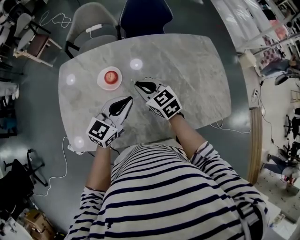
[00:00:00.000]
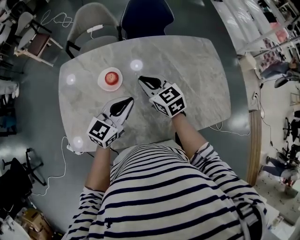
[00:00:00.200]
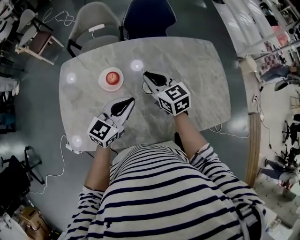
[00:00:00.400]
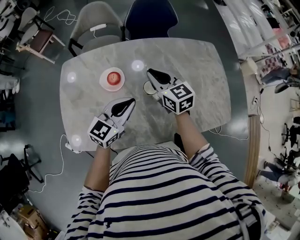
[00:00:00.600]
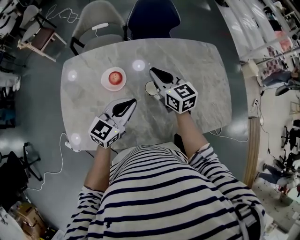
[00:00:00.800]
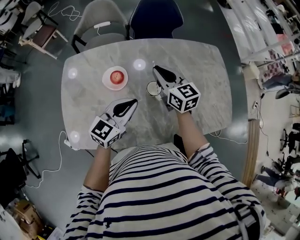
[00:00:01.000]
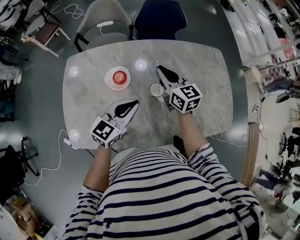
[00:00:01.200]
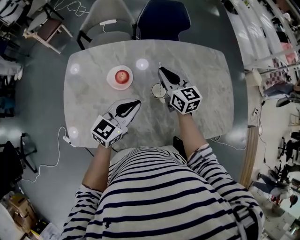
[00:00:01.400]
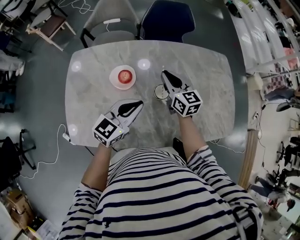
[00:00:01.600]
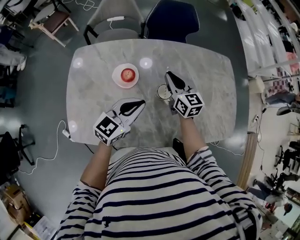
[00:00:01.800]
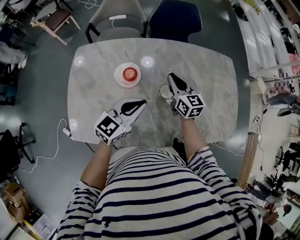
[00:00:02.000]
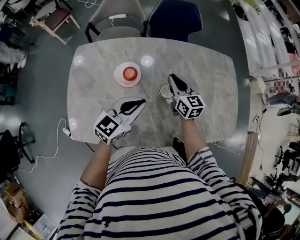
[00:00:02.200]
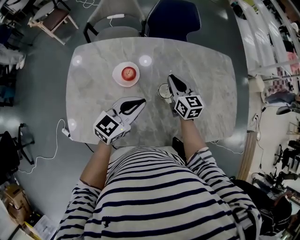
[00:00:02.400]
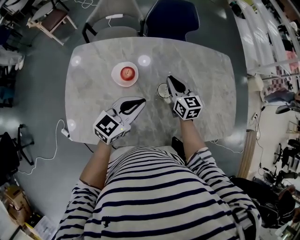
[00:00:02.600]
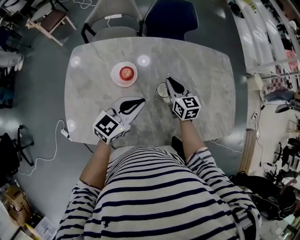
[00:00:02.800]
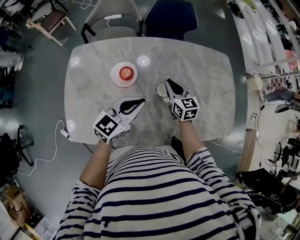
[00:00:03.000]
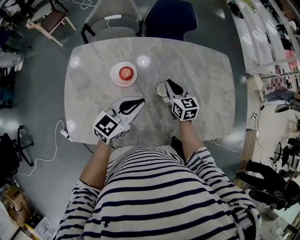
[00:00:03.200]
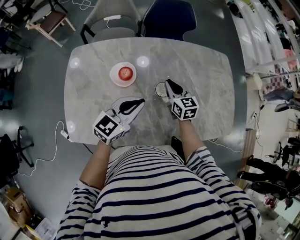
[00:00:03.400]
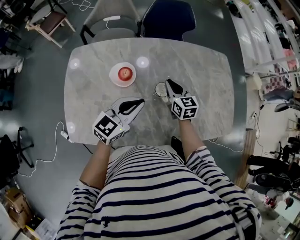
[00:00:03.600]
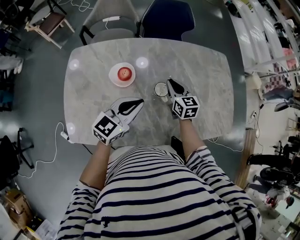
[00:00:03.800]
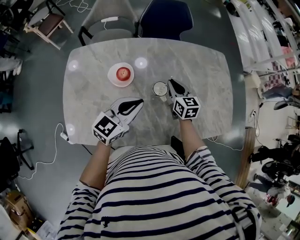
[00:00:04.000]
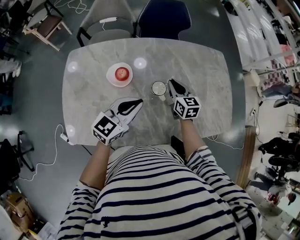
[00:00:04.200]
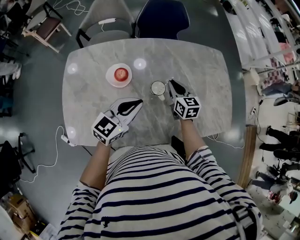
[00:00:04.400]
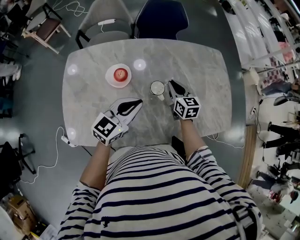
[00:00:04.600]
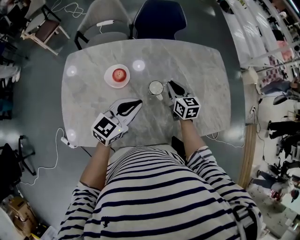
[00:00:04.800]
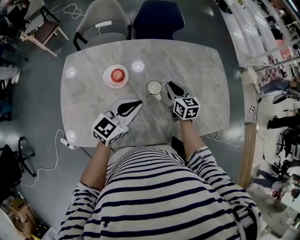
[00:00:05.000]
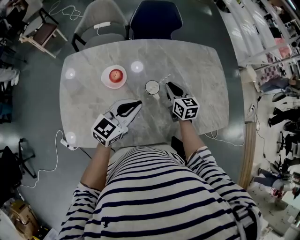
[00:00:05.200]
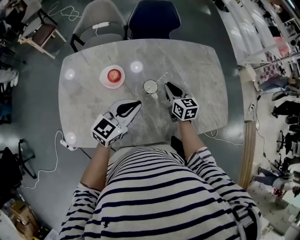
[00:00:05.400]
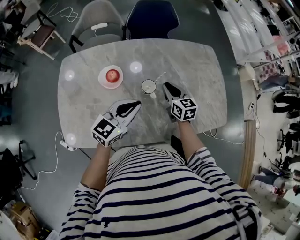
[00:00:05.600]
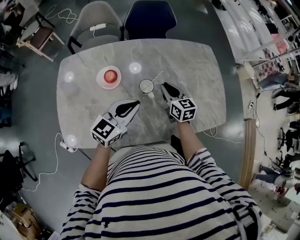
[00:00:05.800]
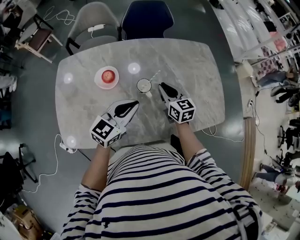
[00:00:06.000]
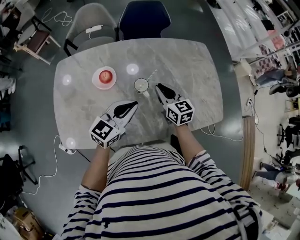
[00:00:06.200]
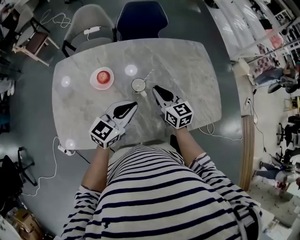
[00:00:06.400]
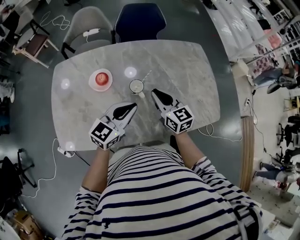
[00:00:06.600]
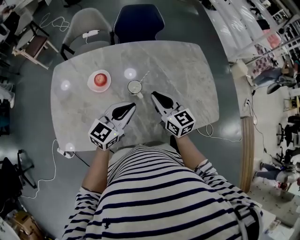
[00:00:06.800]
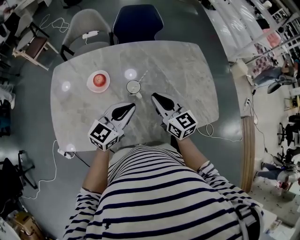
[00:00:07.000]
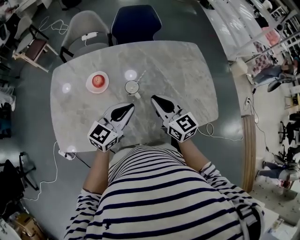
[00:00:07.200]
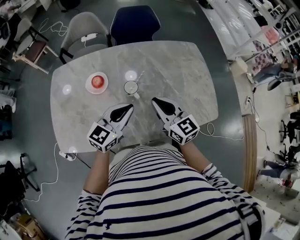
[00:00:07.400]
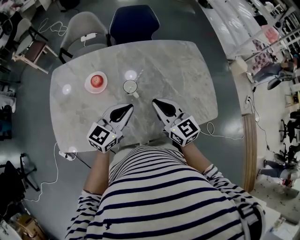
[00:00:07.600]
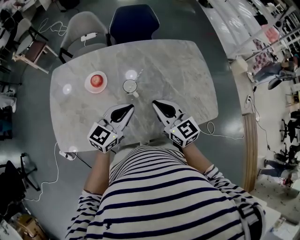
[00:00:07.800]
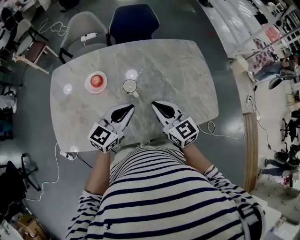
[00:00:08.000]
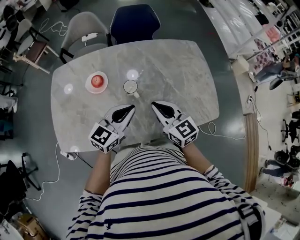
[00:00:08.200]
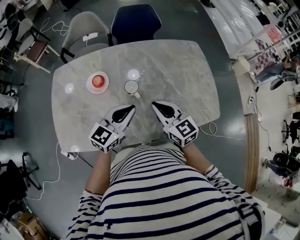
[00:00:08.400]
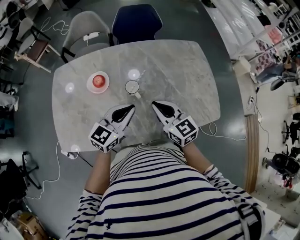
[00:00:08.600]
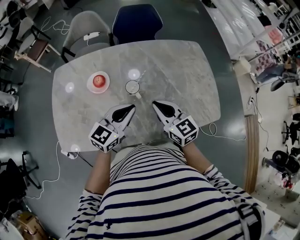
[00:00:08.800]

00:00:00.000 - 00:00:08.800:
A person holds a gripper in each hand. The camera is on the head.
00:00:00.000 - 00:00:01.400: The right gripper travels forward by some 10 cm, and turns by some 20 degrees.
00:00:01.400 - 00:00:03.000: The right gripper goes roughly 10 cm downward.
00:00:03.000 - 00:00:04.400: The grippers make only small movements.
00:00:04.400 - 00:00:05.800: The grippers stay close to where they were, moving slightly.
00:00:05.800 - 00:00:07.400: The left gripper is displaced to the right by approximately 5 cm. Meanwhile the right gripper heads upward and backward, covering approximately 15 cm.
00:00:07.400 - 00:00:08.800: There are only small adjustments of the grippers.

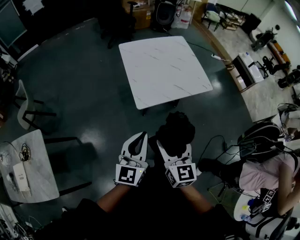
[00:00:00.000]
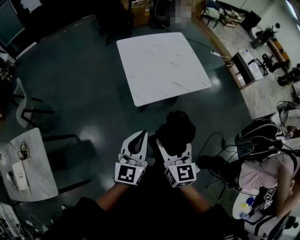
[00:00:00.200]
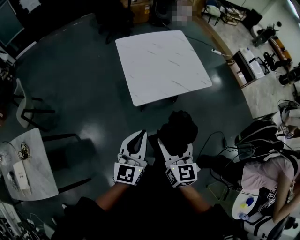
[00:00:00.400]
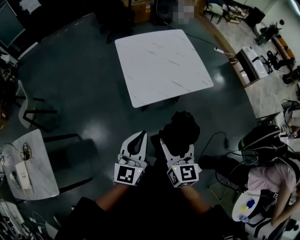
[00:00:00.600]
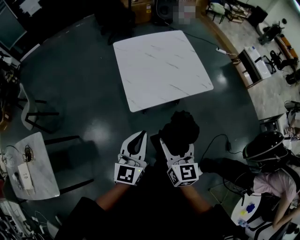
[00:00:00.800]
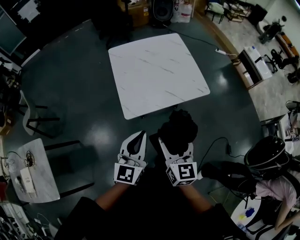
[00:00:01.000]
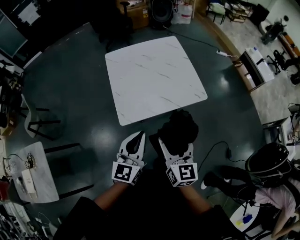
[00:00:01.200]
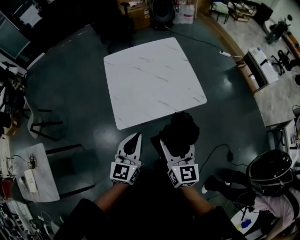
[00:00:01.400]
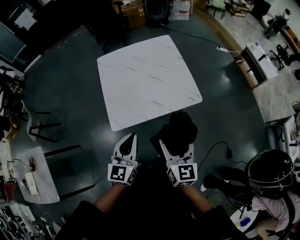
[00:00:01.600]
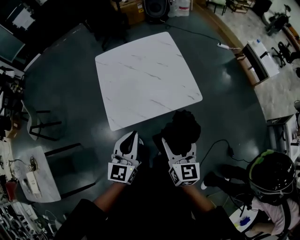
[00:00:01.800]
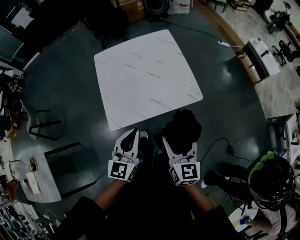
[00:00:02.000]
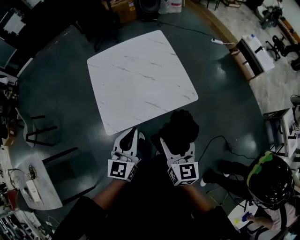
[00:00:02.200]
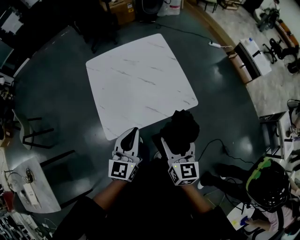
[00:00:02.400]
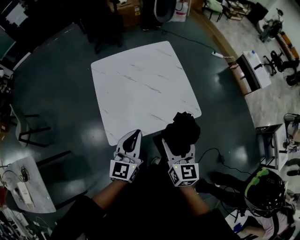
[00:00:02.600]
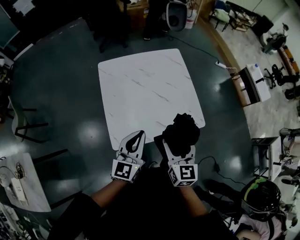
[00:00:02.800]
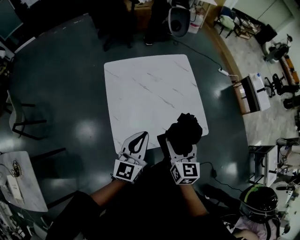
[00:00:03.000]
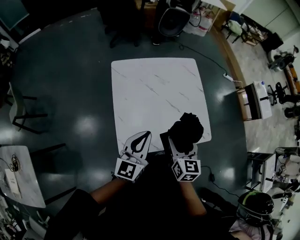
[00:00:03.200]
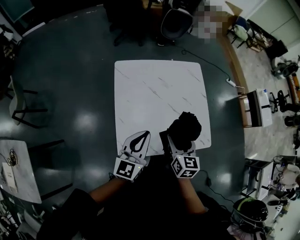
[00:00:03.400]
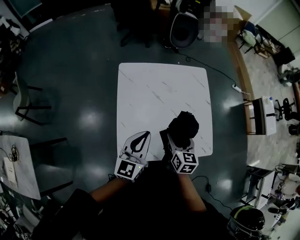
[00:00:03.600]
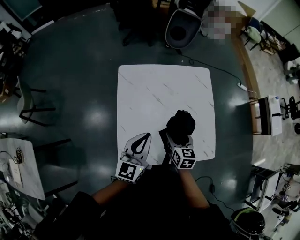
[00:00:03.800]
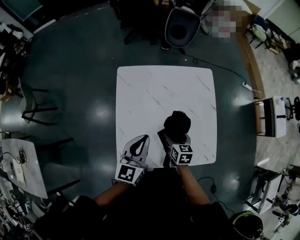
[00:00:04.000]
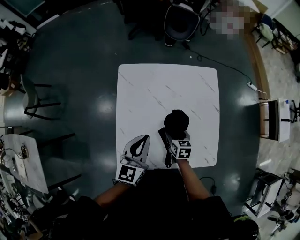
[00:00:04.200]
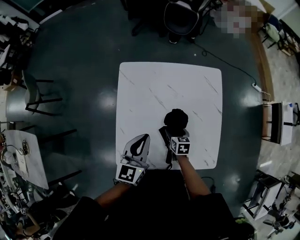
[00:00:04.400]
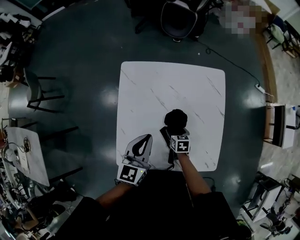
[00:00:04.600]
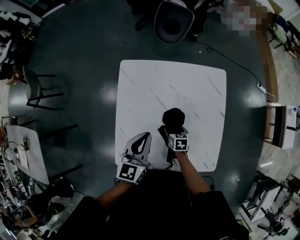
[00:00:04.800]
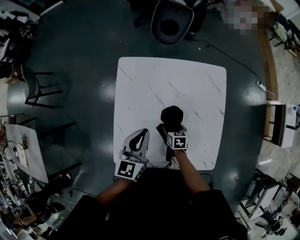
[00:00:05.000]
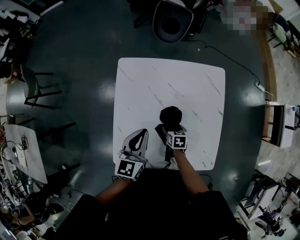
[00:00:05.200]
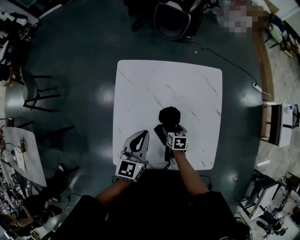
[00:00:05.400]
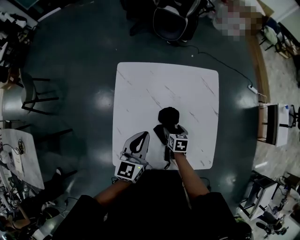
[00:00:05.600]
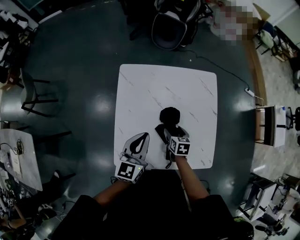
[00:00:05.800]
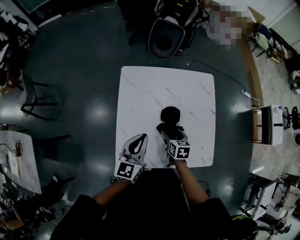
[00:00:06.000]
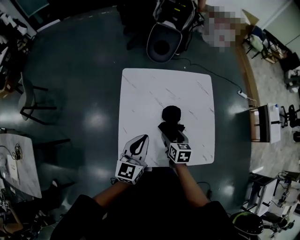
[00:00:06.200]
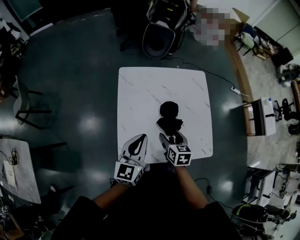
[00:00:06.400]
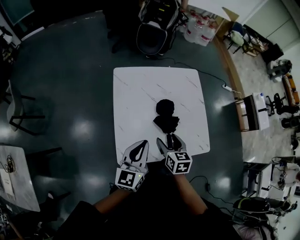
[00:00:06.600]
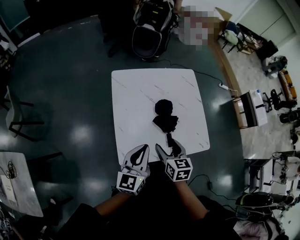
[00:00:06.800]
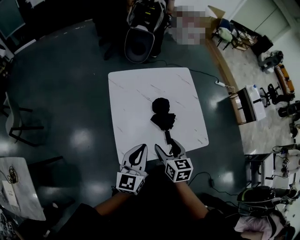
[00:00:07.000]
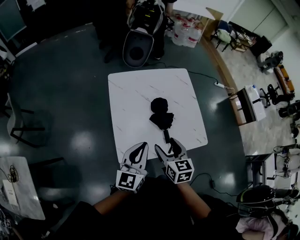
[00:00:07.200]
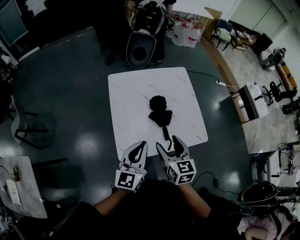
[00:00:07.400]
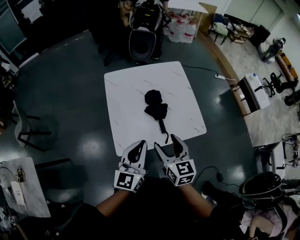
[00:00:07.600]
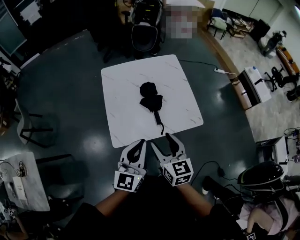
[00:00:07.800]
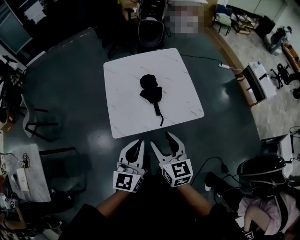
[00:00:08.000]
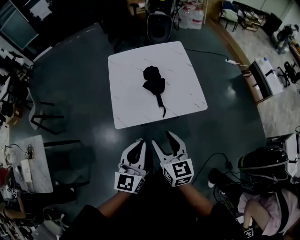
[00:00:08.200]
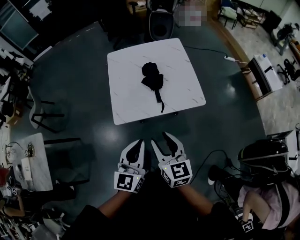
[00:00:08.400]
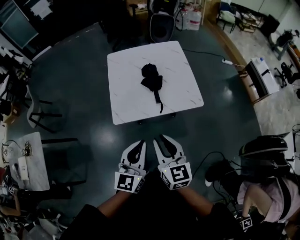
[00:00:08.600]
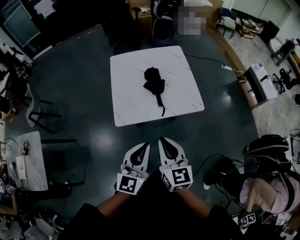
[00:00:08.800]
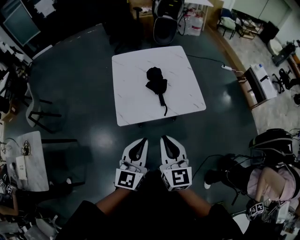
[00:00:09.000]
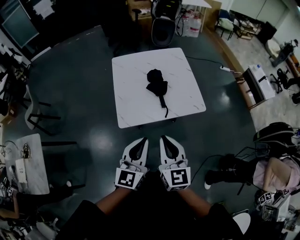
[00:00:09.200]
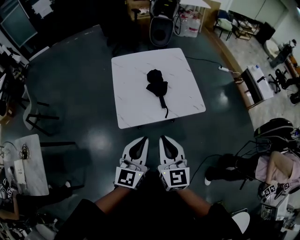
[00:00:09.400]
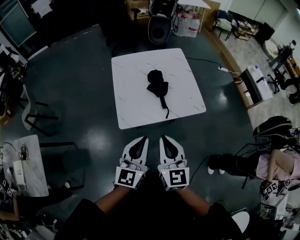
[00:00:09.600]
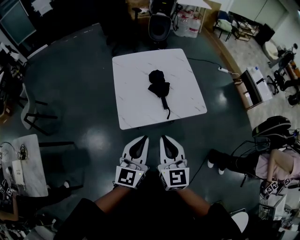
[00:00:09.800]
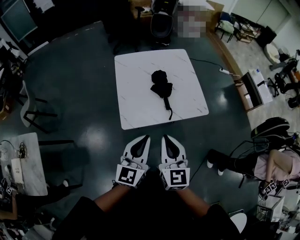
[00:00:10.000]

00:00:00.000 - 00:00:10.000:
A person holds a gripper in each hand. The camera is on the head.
00:00:00.000 - 00:00:01.400: The left gripper moves forward and to the right, some 25 cm; the right gripper shifts some 30 cm to the right and forward.
00:00:01.400 - 00:00:02.800: The grippers both shift forward by some 15 cm.
00:00:02.800 - 00:00:04.200: The right gripper is displaced forward and downward by some 35 cm, and turns by some 40 degrees, while the left gripper goes about 20 cm forward.
00:00:04.200 - 00:00:05.800: The right gripper moves roughly 10 cm downward and comes back.
00:00:05.800 - 00:00:07.200: The left gripper is displaced backward by some 20 cm, while the right gripper heads backward and upward, covering roughly 30 cm, and changes its angle by about 20 degrees.
00:00:07.200 - 00:00:08.600: The left gripper is displaced backward and to the right by roughly 30 cm; the right gripper heads backward, covering roughly 25 cm, and closes its fingers.
00:00:08.600 - 00:00:10.000: The grippers both shift to the left by roughly 10 cm.

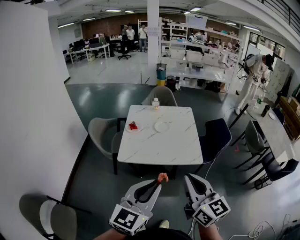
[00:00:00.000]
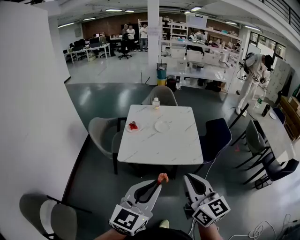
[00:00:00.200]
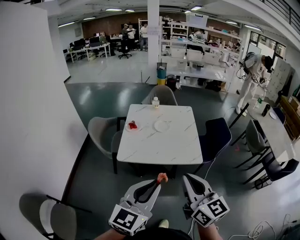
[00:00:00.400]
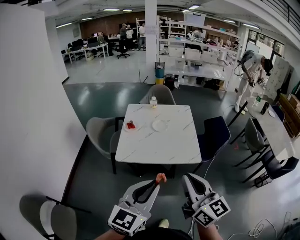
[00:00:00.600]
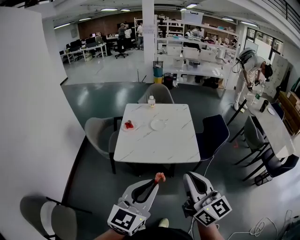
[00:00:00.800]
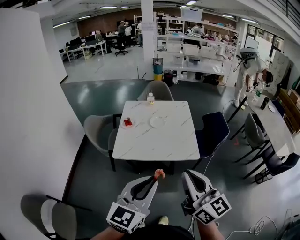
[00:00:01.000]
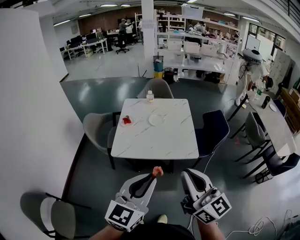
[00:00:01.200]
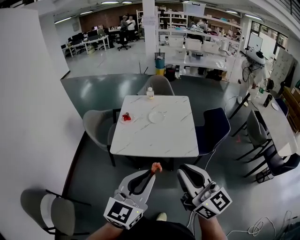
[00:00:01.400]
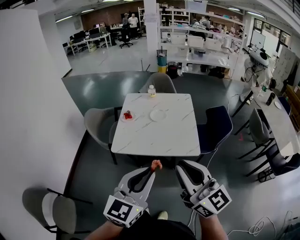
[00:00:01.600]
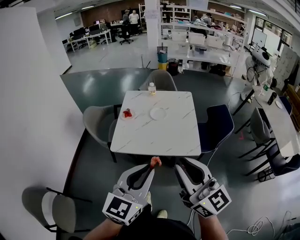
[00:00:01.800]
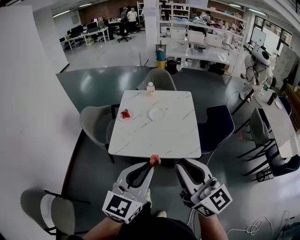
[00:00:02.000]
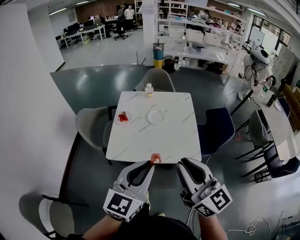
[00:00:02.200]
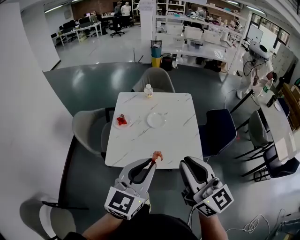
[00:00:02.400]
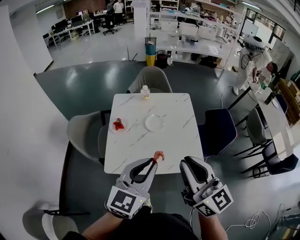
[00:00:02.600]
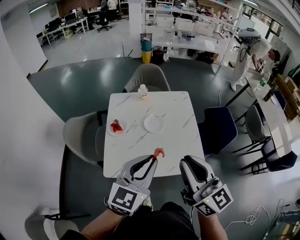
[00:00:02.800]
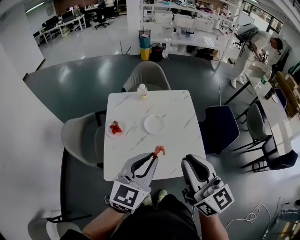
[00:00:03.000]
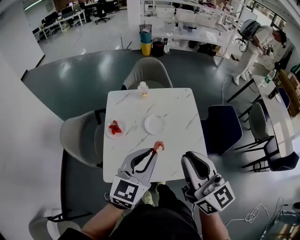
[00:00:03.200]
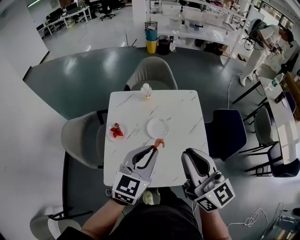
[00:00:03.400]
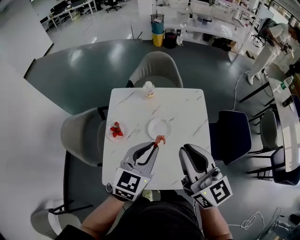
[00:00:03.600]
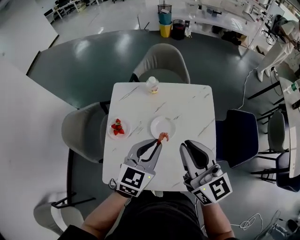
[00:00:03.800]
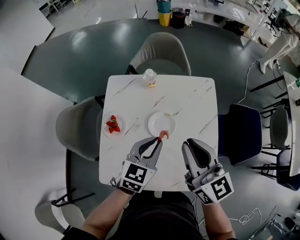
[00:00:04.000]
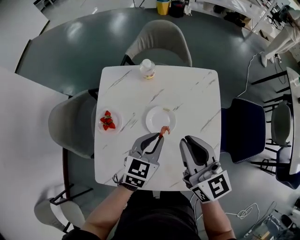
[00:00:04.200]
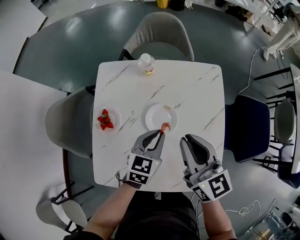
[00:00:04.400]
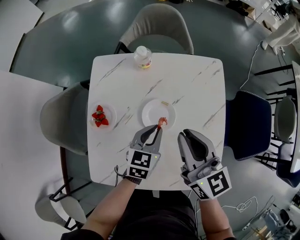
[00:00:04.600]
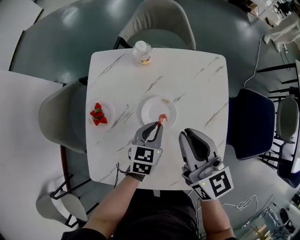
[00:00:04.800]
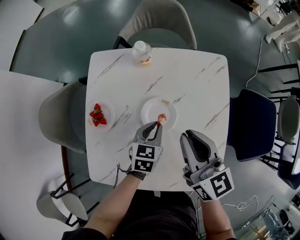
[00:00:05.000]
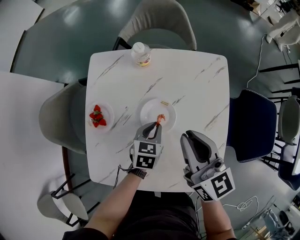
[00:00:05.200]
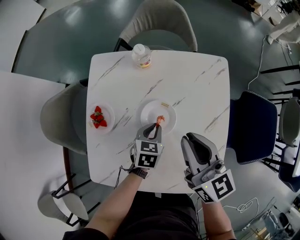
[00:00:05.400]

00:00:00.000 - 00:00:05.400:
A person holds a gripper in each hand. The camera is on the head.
00:00:00.000 - 00:00:01.400: The right gripper moves approximately 5 cm; the left gripper shifts approximately 5 cm to the right.
00:00:01.400 - 00:00:02.800: The grippers both shift forward by approximately 30 cm.
00:00:02.800 - 00:00:04.000: The two grippers go approximately 30 cm forward and downward. The left gripper turns by about 20 degrees.
00:00:04.000 - 00:00:05.400: The left gripper goes roughly 25 cm downward, and changes its angle by roughly 30 degrees; the right gripper shifts some 15 cm downward and forward.
